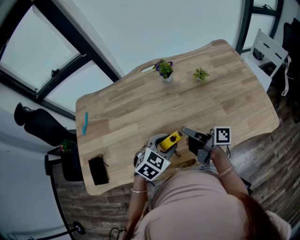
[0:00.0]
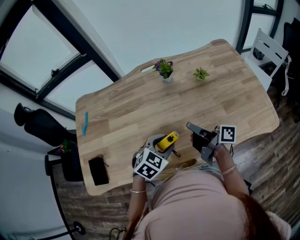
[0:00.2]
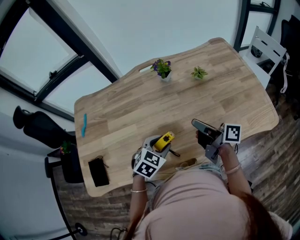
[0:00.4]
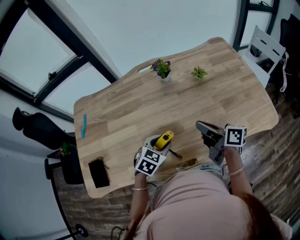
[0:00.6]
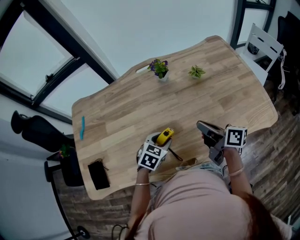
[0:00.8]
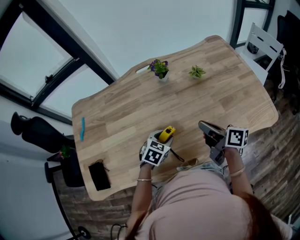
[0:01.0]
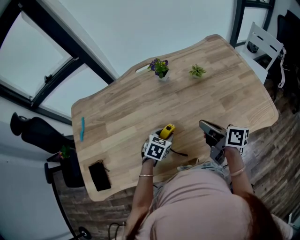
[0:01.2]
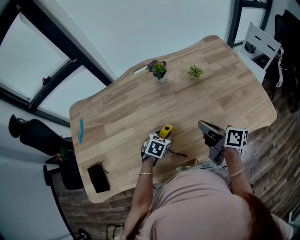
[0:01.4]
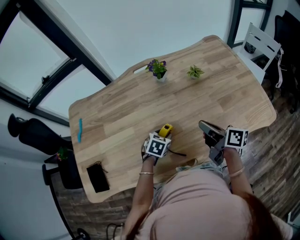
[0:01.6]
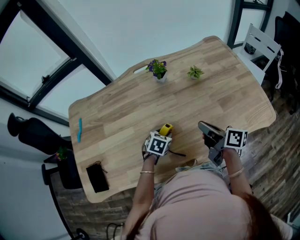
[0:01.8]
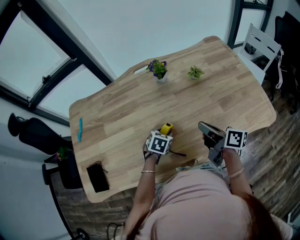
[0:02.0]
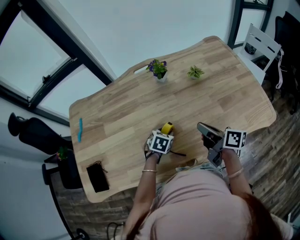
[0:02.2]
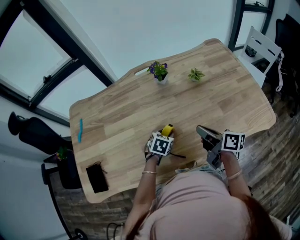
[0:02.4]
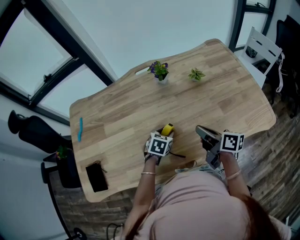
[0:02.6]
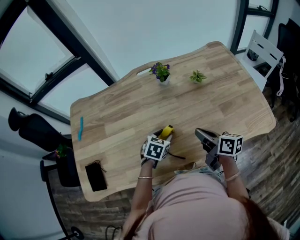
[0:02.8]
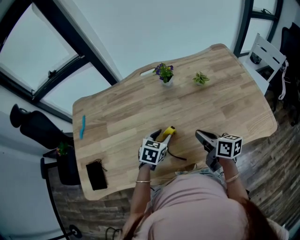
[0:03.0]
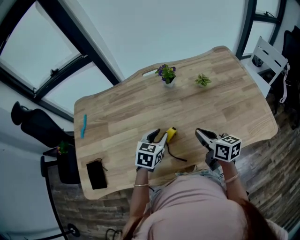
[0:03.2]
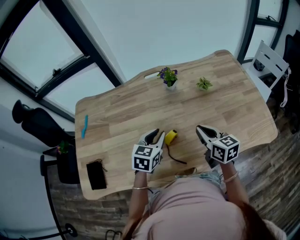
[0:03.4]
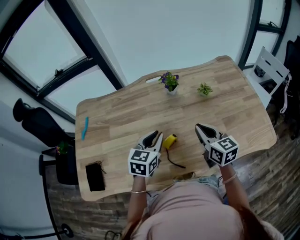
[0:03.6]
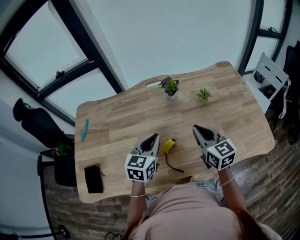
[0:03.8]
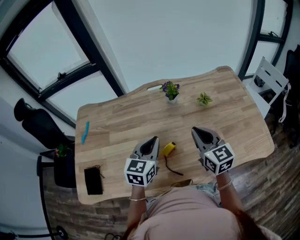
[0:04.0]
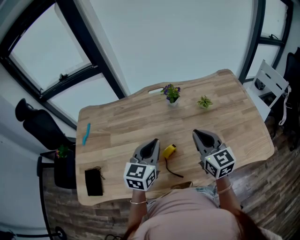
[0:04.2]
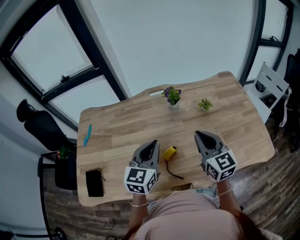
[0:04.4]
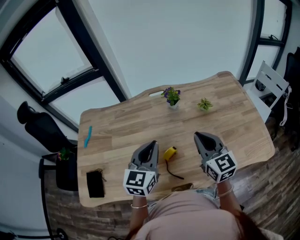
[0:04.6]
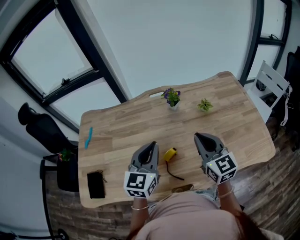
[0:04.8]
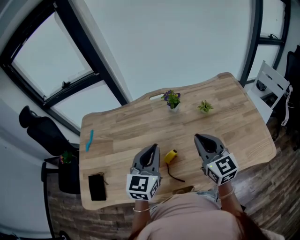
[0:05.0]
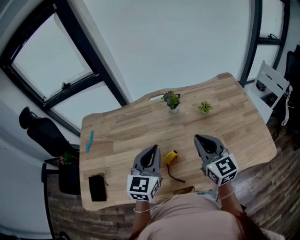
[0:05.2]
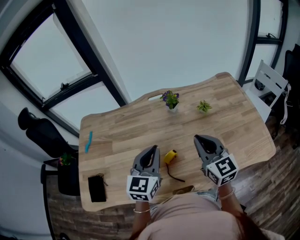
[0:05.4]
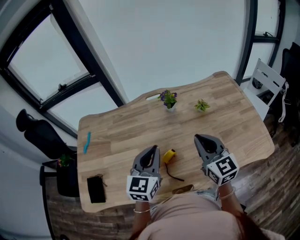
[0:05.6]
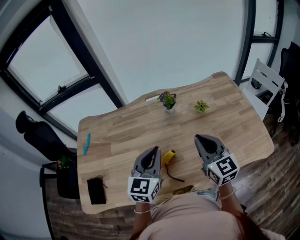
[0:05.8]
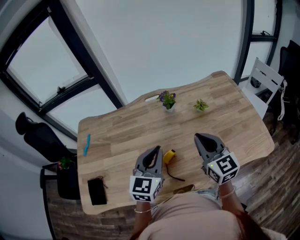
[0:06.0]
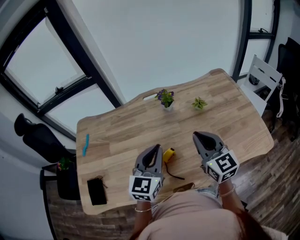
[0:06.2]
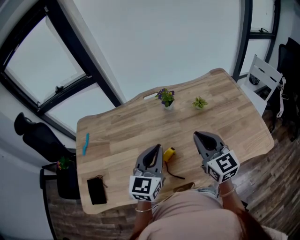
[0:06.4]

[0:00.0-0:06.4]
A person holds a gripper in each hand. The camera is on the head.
0:00.0 to 0:01.6: The right gripper heads to the right, covering some 10 cm, and rotates some 30 degrees, while the left gripper moves downward and forward, roughly 15 cm, and changes its angle by some 20 degrees.
0:01.6 to 0:03.2: The left gripper moves upward, approximately 10 cm, and turns by roughly 20 degrees; the right gripper rotates roughly 20 degrees.
0:03.2 to 0:04.8: Both grippers travel together upward, approximately 15 cm. The right gripper changes its angle by approximately 40 degrees. The left gripper swivels approximately 30 degrees, and closes up.
0:04.8 to 0:06.4: The grippers make only small movements.

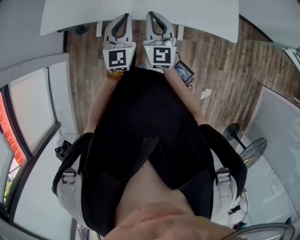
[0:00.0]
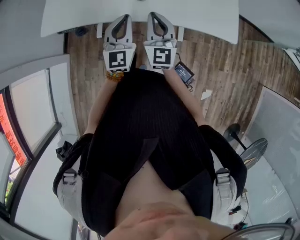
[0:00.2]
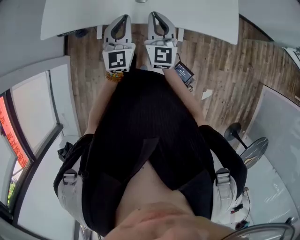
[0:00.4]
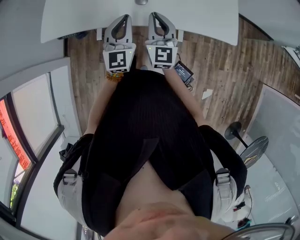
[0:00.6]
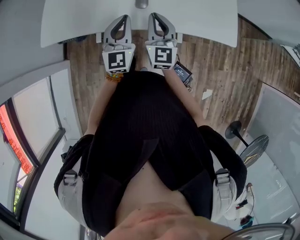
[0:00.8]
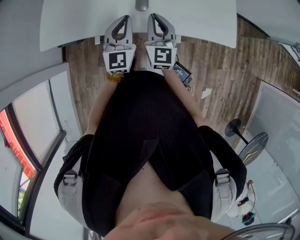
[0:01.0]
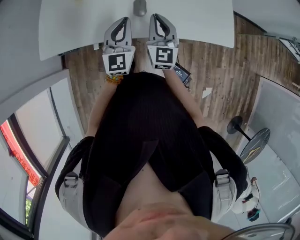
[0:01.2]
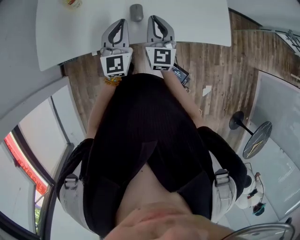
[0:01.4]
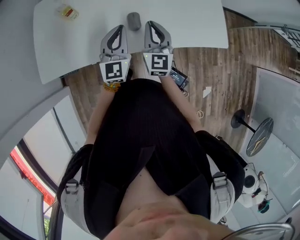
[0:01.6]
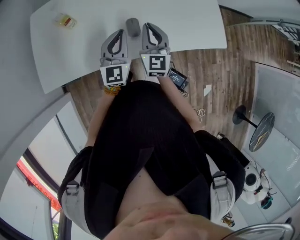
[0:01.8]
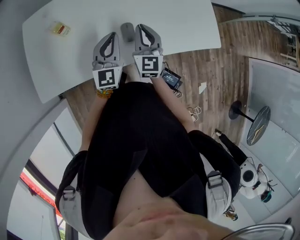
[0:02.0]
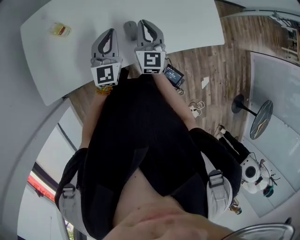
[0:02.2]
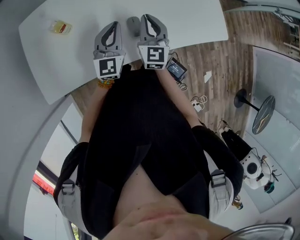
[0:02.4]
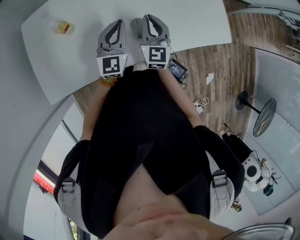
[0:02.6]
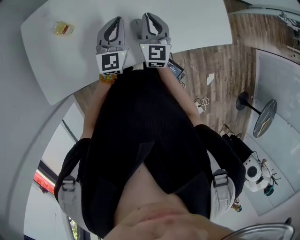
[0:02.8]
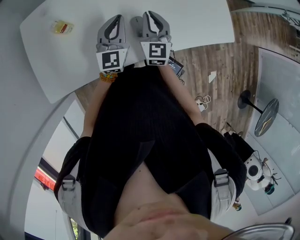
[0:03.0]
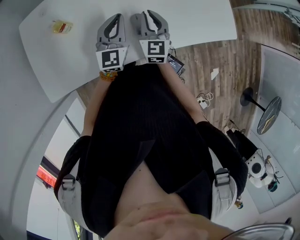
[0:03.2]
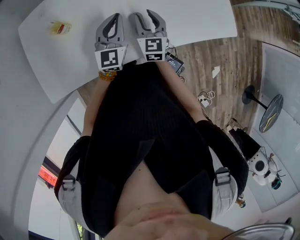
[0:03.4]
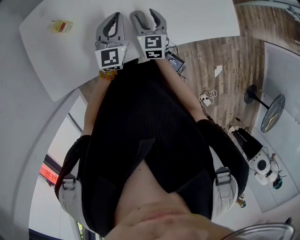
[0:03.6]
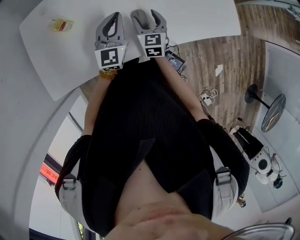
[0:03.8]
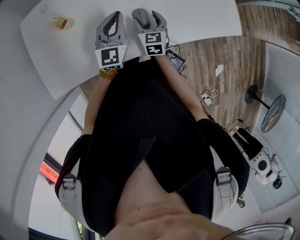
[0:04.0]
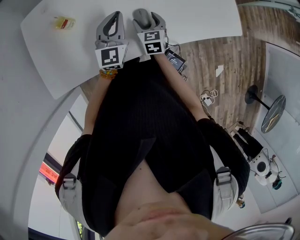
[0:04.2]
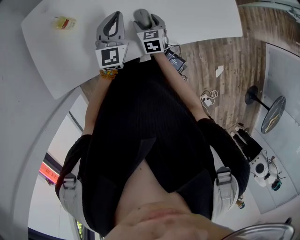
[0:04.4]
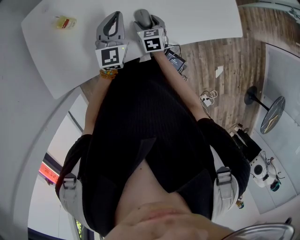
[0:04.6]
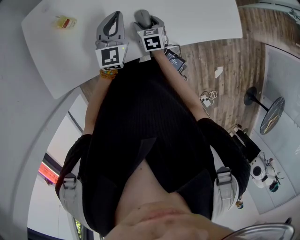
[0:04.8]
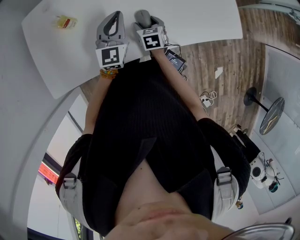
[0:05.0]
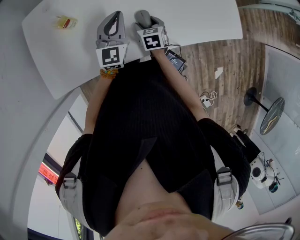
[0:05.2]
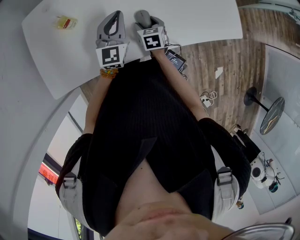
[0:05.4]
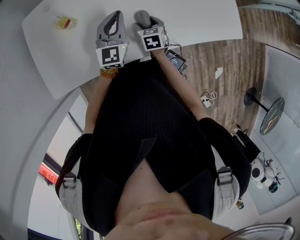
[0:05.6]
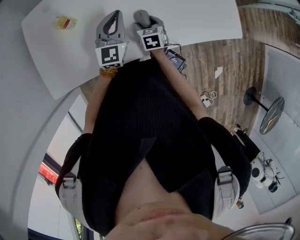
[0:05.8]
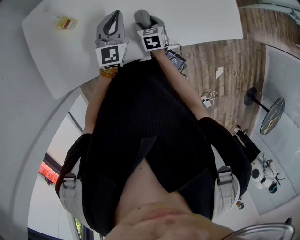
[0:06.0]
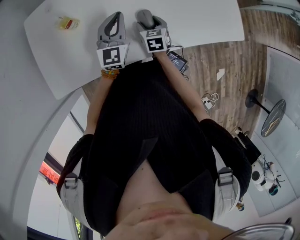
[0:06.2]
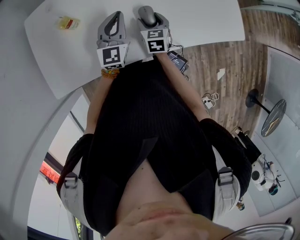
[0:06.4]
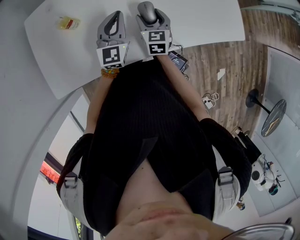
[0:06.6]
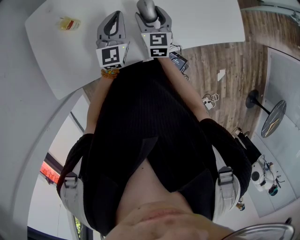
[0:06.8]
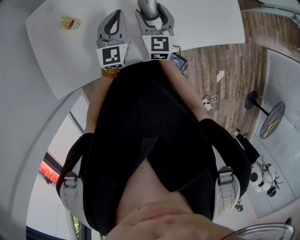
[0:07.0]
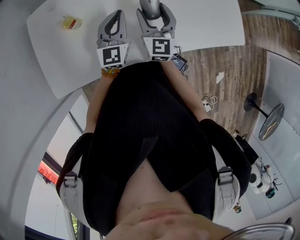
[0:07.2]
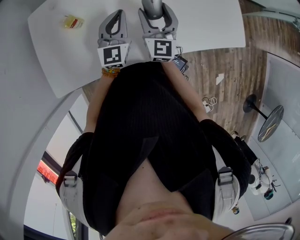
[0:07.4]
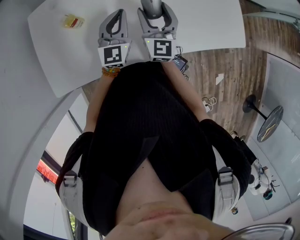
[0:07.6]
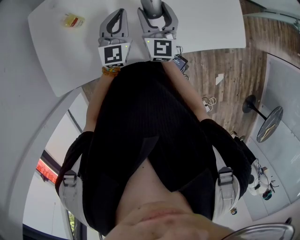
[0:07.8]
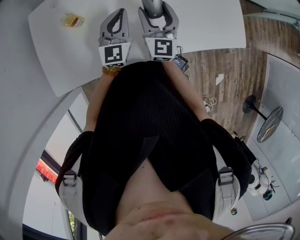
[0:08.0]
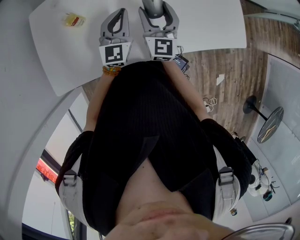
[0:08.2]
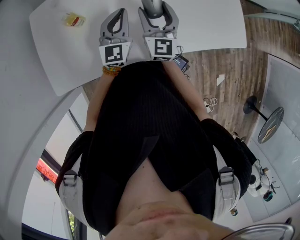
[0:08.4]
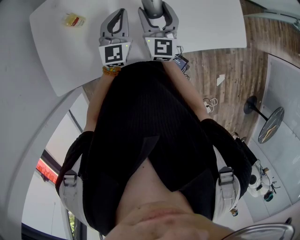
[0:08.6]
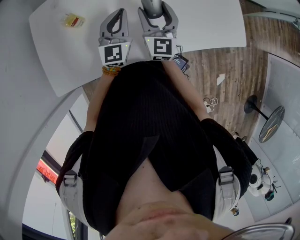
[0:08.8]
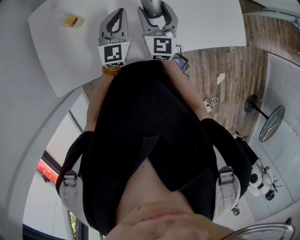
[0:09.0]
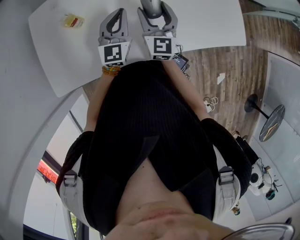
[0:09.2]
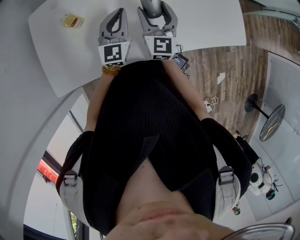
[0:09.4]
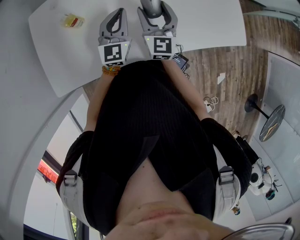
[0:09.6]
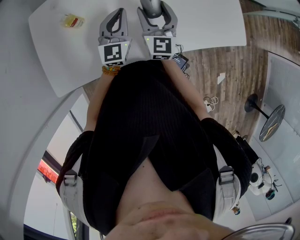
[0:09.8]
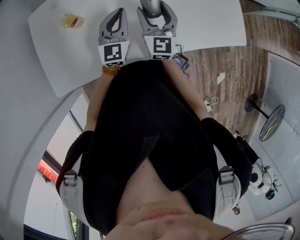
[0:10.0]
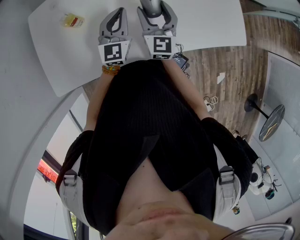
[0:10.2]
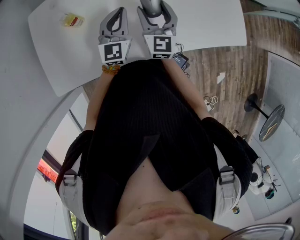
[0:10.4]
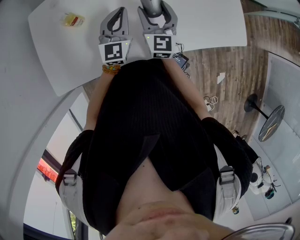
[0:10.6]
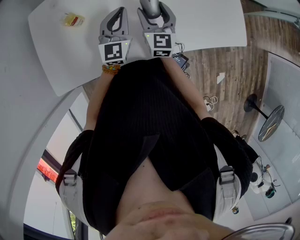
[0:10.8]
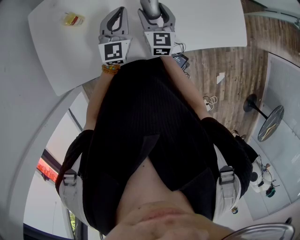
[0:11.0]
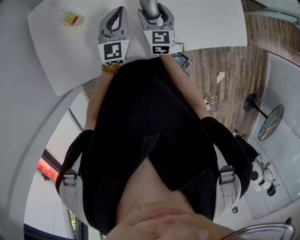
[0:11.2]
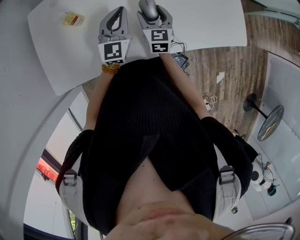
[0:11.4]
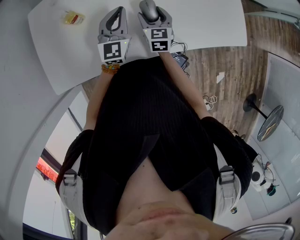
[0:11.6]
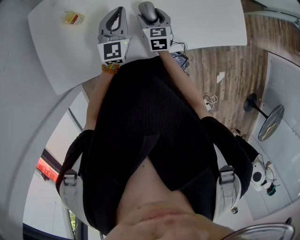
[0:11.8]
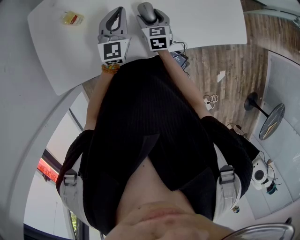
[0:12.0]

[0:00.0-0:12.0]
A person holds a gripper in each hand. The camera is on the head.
0:00.0 to 0:01.6: The grippers both shift forward by some 15 cm.
0:01.6 to 0:03.0: The grippers both shift forward by some 10 cm.
0:03.0 to 0:04.4: The right gripper moves downward, approximately 15 cm, swivels roughly 30 degrees, and opens its fingers.
0:04.4 to 0:06.0: There are only small adjustments of the grippers.
0:06.0 to 0:07.6: The right gripper travels upward by roughly 20 cm, and tips its fingers upward by about 50 degrees.
0:07.6 to 0:10.4: Neither gripper changes place.
0:10.4 to 0:12.0: The right gripper goes about 15 cm downward, and changes its angle by about 30 degrees.

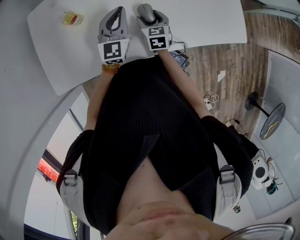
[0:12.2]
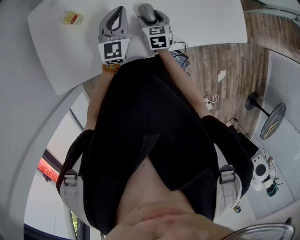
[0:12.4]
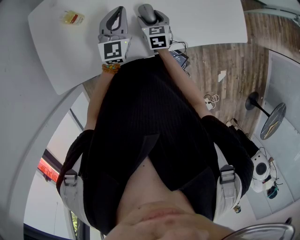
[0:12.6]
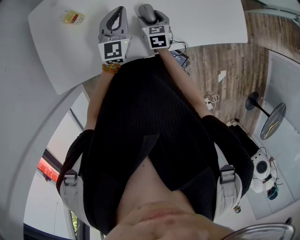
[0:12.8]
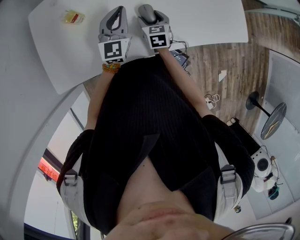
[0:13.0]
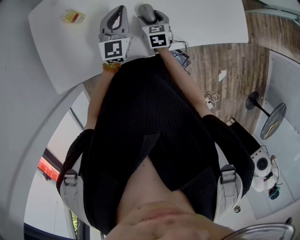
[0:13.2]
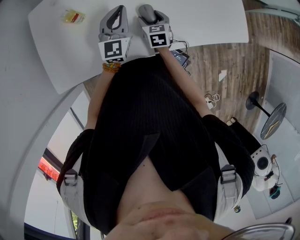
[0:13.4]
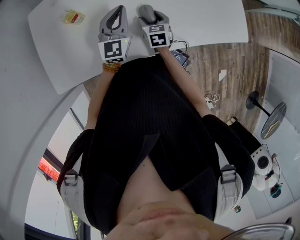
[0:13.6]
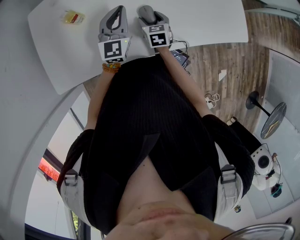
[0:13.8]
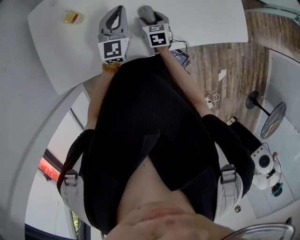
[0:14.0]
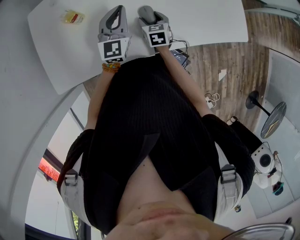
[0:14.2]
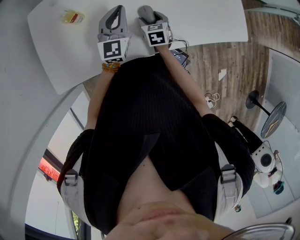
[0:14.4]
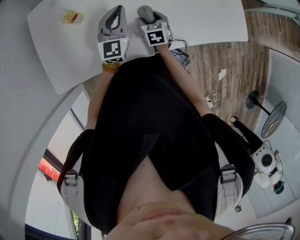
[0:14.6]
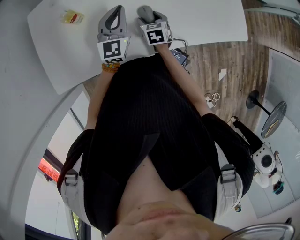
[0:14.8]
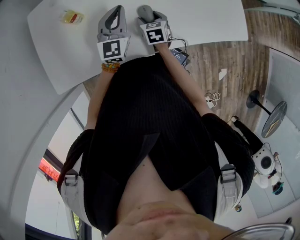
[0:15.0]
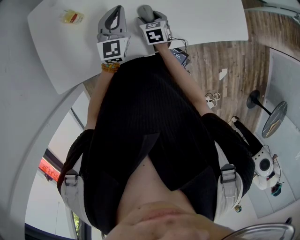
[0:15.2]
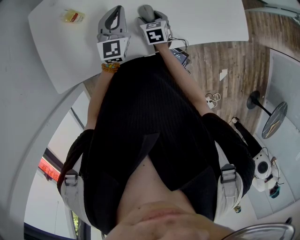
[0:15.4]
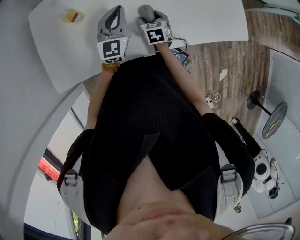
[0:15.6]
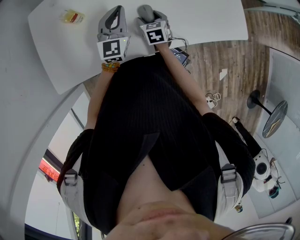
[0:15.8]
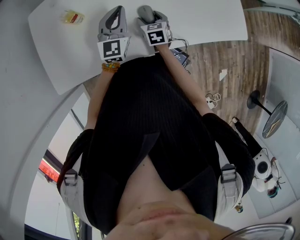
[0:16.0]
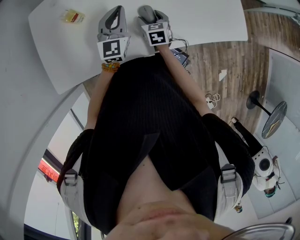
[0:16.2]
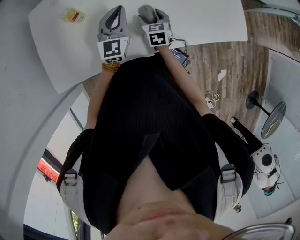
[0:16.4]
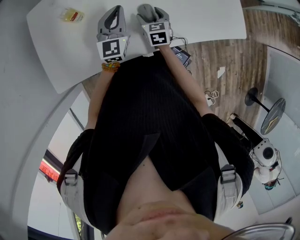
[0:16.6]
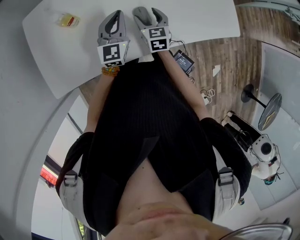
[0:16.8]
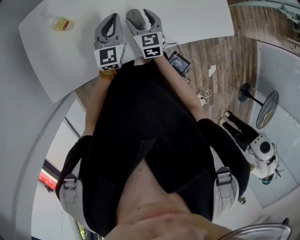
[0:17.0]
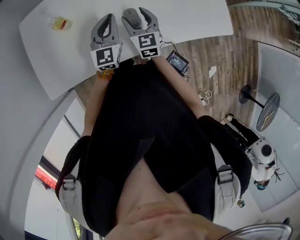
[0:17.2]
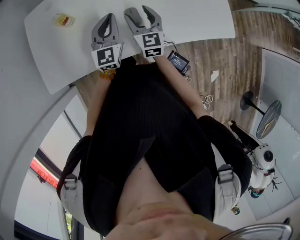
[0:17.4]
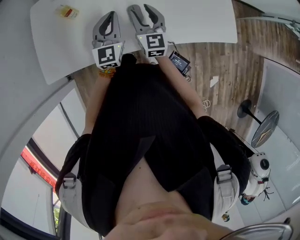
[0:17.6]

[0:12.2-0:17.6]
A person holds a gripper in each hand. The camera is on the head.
0:12.2 to 0:15.0: There are only small adjustments of the grippers.
0:15.0 to 0:16.2: Both grippers stay about where they are.
0:16.2 to 0:17.6: The right gripper is displaced upward by some 15 cm, and tips its fingers upward by roughly 30 degrees. Meanwhile the left gripper heads backward, covering some 5 cm.
